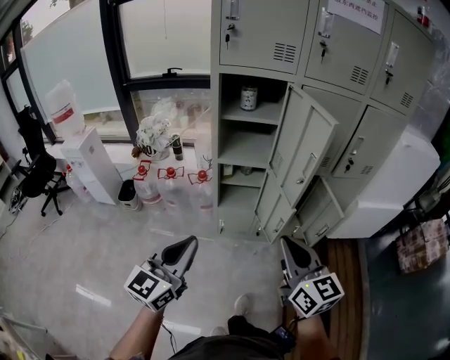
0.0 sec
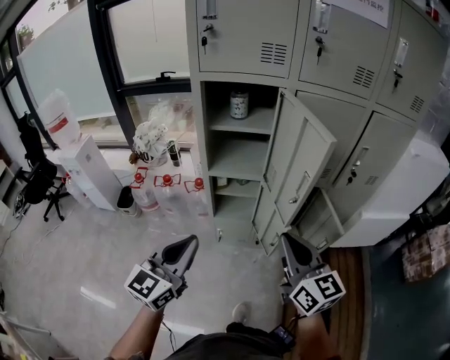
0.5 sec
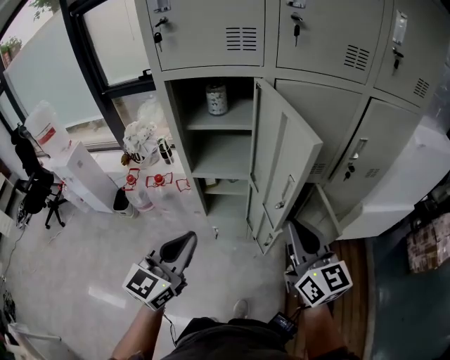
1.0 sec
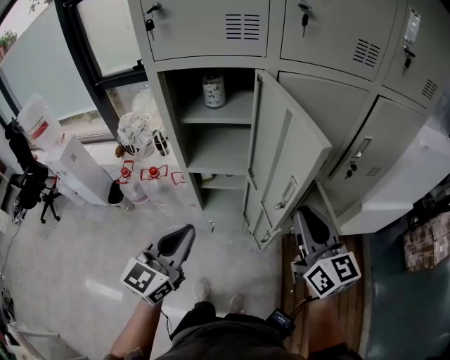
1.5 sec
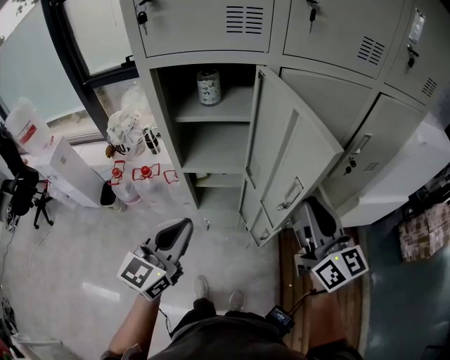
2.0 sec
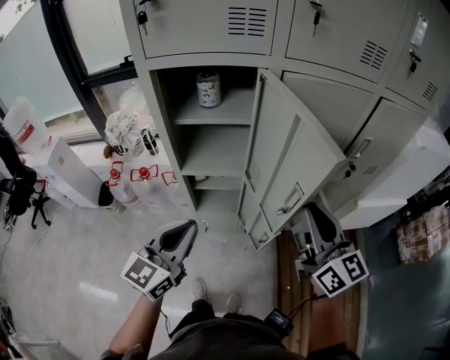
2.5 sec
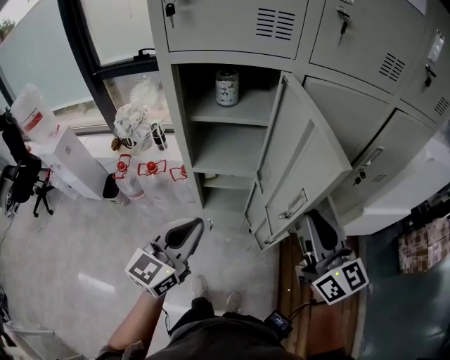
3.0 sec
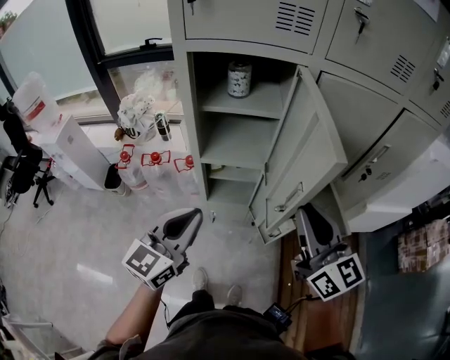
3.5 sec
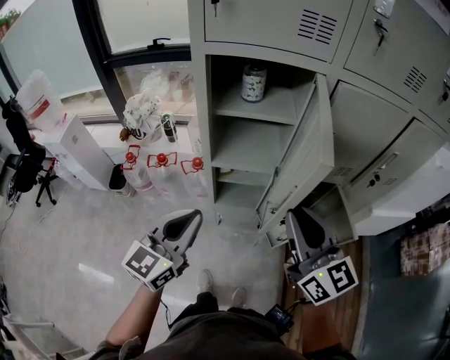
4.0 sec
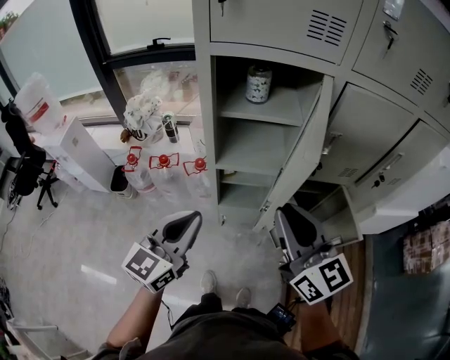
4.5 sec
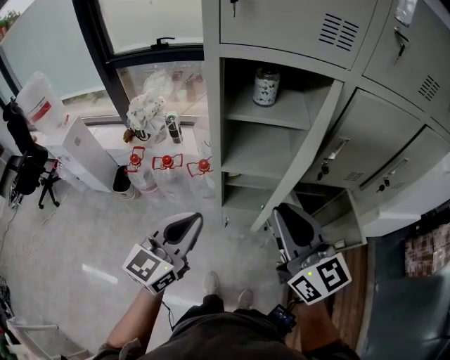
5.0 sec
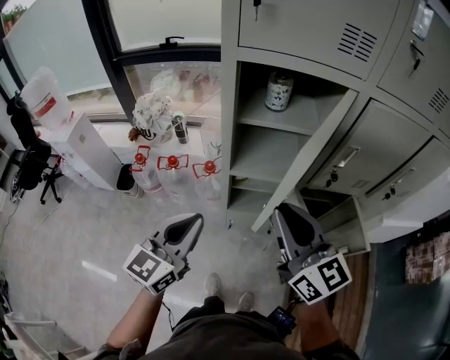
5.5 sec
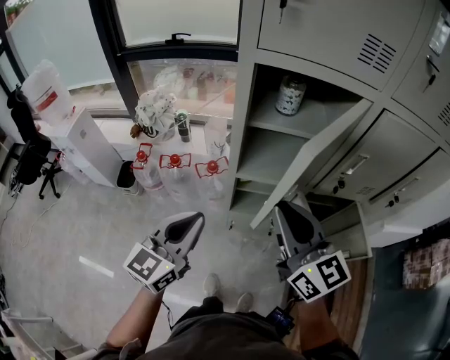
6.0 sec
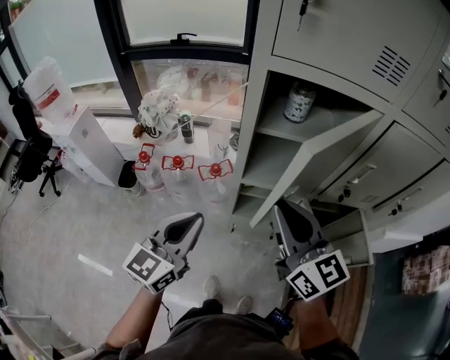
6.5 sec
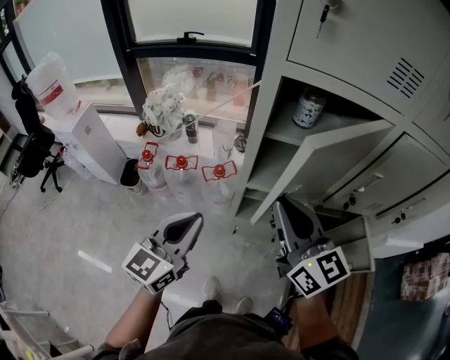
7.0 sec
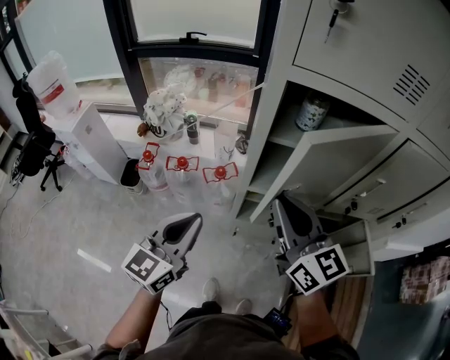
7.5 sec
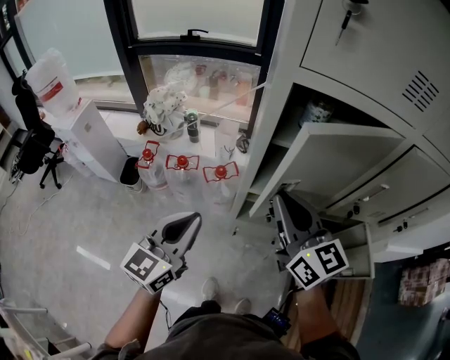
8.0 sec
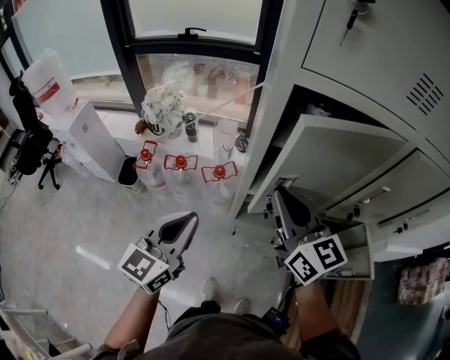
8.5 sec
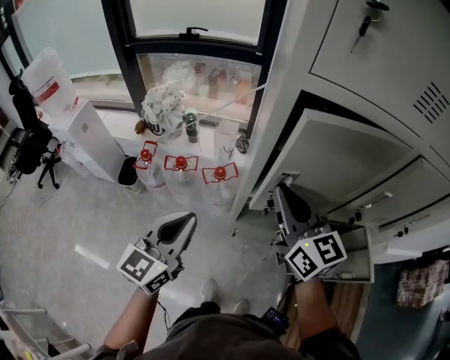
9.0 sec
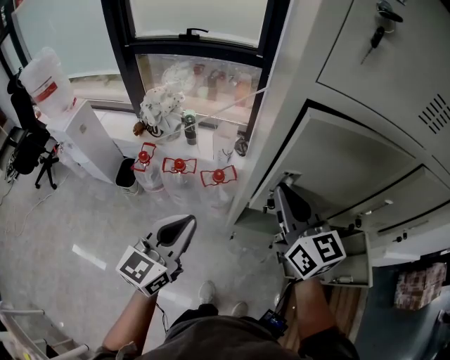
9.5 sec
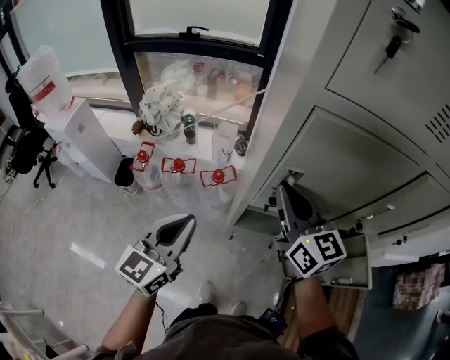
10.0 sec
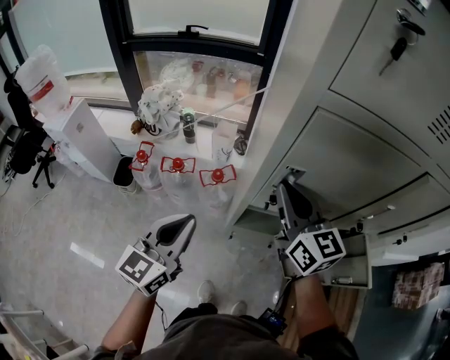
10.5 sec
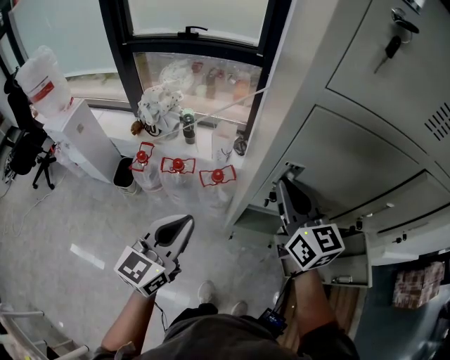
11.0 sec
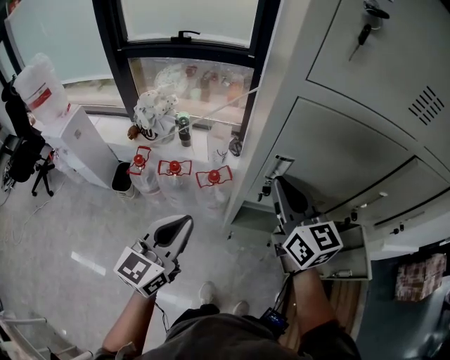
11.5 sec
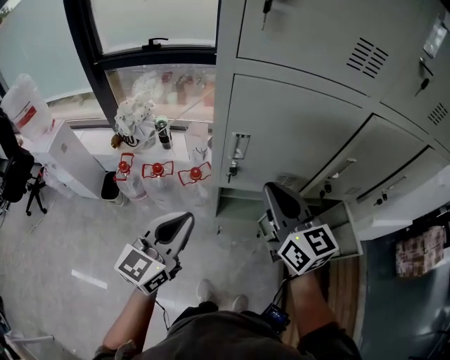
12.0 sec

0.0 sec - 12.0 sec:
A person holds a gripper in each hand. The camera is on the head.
0.0 sec - 2.0 sec: The right gripper shifts some 25 cm forward and to the right, while the left gripper travels forward by approximately 20 cm.
2.0 sec - 4.0 sec: The left gripper heads to the left, covering roughly 5 cm, while the right gripper is displaced to the left by roughly 15 cm.
4.0 sec - 6.0 sec: The left gripper goes roughly 10 cm to the left. Meanwhile the right gripper heads to the left and forward, covering about 15 cm.
6.0 sec - 8.0 sec: The right gripper moves forward, about 10 cm; the left gripper goes some 5 cm forward.
8.0 sec - 10.0 sec: The left gripper moves roughly 5 cm. The right gripper is displaced forward by some 10 cm.
10.0 sec - 12.0 sec: The left gripper moves to the right and backward, approximately 10 cm. The right gripper moves backward and to the right, about 10 cm.

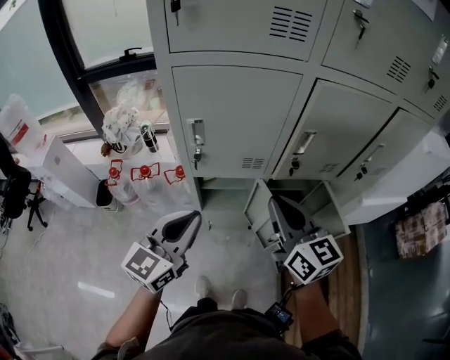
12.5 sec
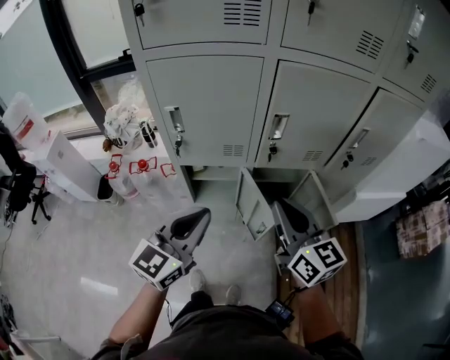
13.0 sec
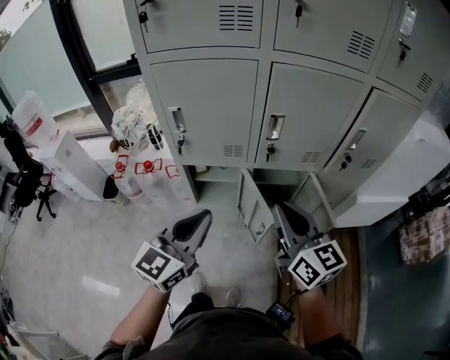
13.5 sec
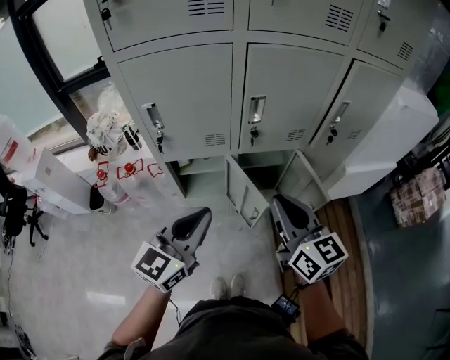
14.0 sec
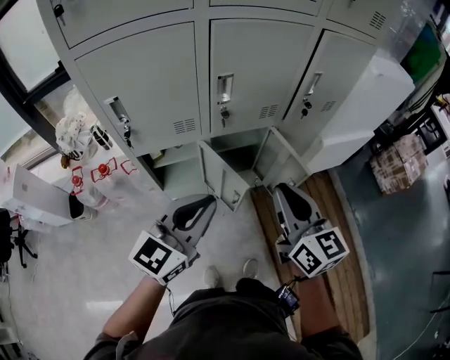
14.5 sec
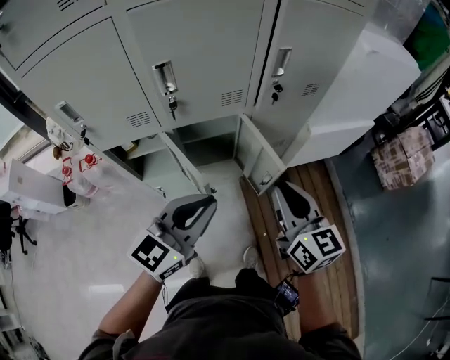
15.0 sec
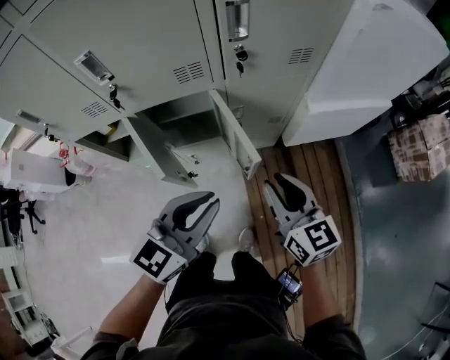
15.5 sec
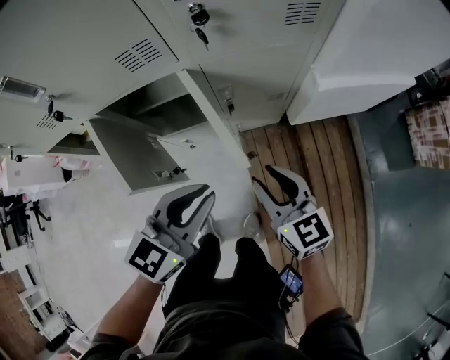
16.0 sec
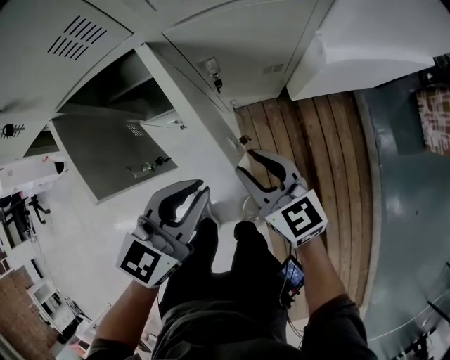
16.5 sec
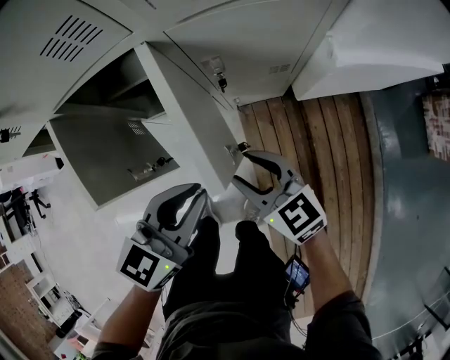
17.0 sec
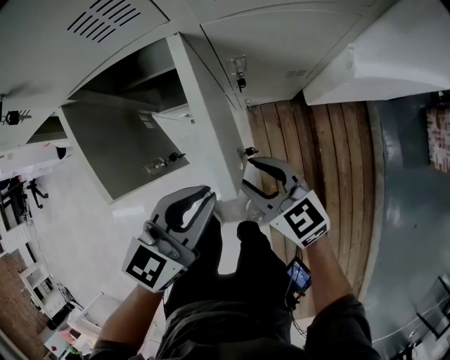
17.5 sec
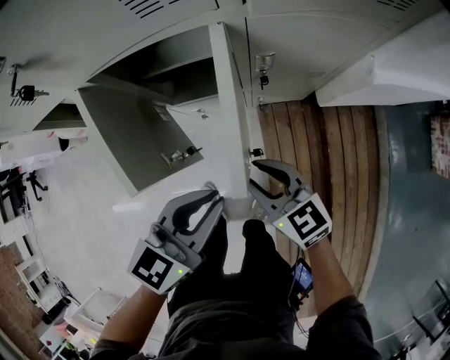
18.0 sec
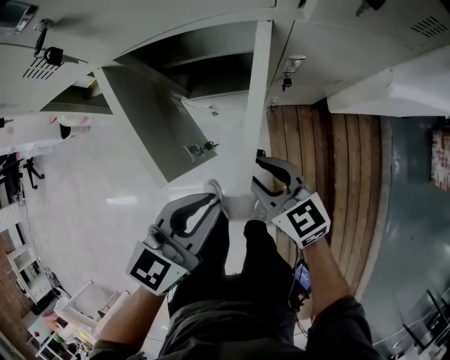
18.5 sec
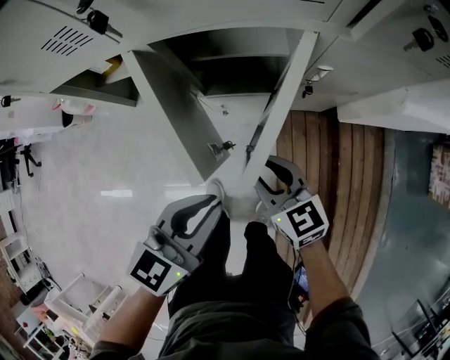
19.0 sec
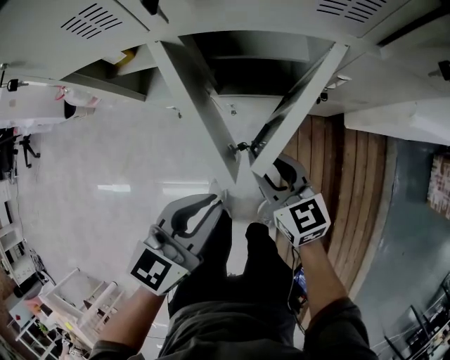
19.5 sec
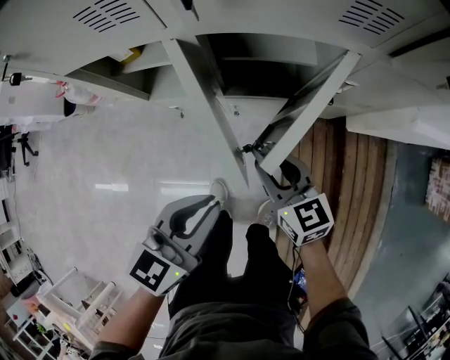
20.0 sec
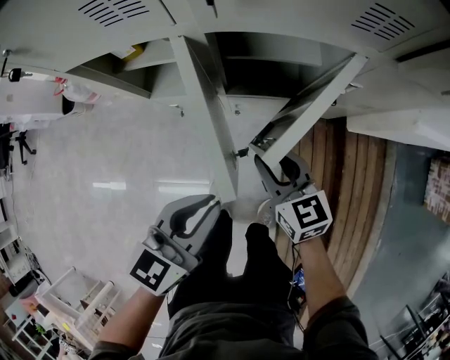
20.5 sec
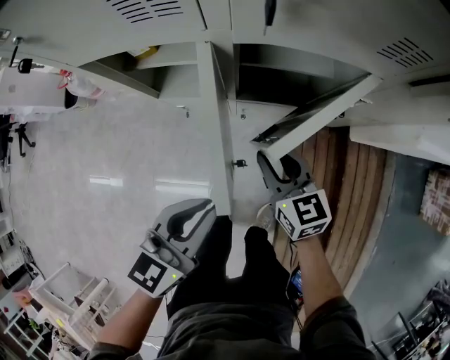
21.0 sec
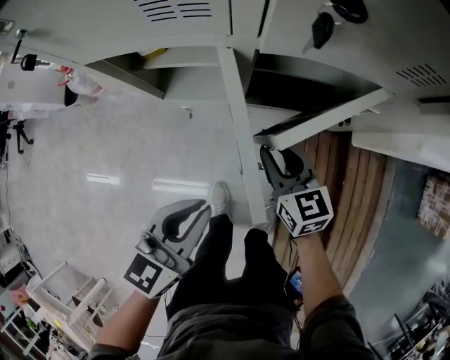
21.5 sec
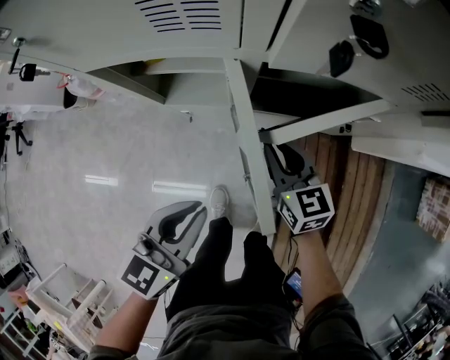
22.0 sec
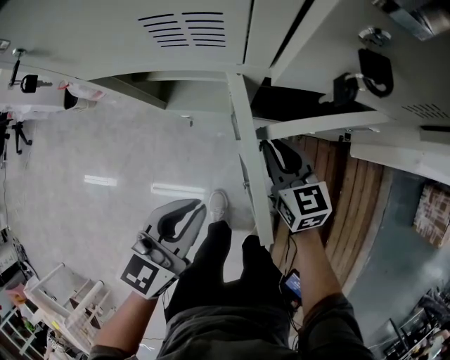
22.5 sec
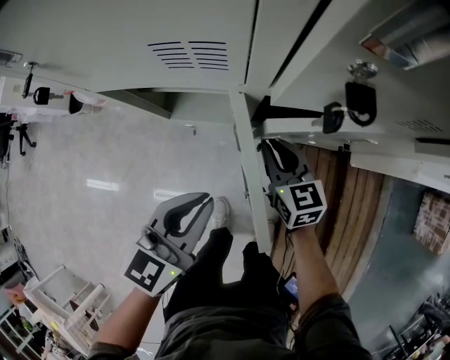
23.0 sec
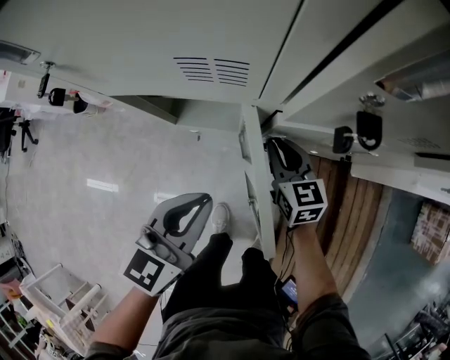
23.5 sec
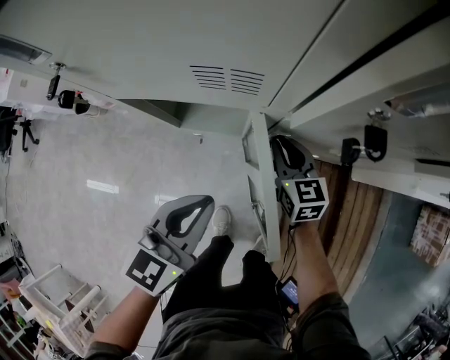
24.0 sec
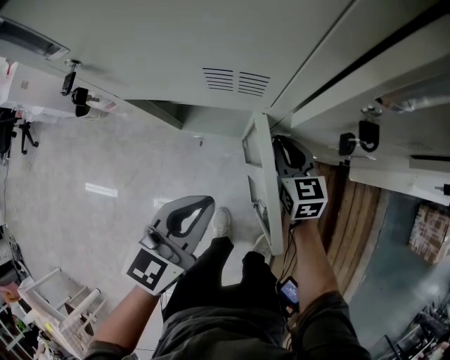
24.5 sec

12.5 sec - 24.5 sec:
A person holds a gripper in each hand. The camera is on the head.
12.5 sec - 14.5 sec: The left gripper goes approximately 20 cm to the right. Meanwhile the right gripper travels to the right and backward by approximately 20 cm.
14.5 sec - 16.5 sec: The left gripper is displaced to the right, downward and forward by approximately 40 cm, and swivels roughly 20 degrees. Meanwhile the right gripper is displaced downward, to the right and forward by roughly 40 cm, rotates about 30 degrees, and opens its fingers.
16.5 sec - 18.5 sec: The two grippers go about 15 cm to the left.
18.5 sec - 20.5 sec: The right gripper goes approximately 10 cm to the left and forward. The left gripper is displaced to the left by approximately 10 cm.
20.5 sec - 22.5 sec: The left gripper moves to the left and forward, about 10 cm, while the right gripper heads forward and to the left, covering roughly 10 cm.
22.5 sec - 24.5 sec: The right gripper shifts about 5 cm forward. The left gripper moves roughly 5 cm.

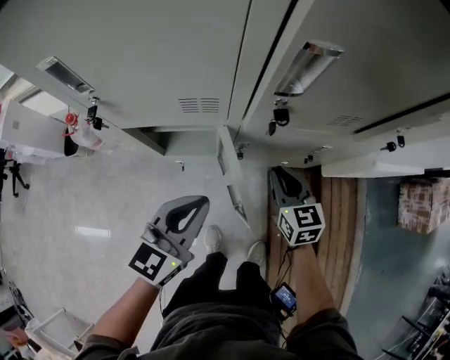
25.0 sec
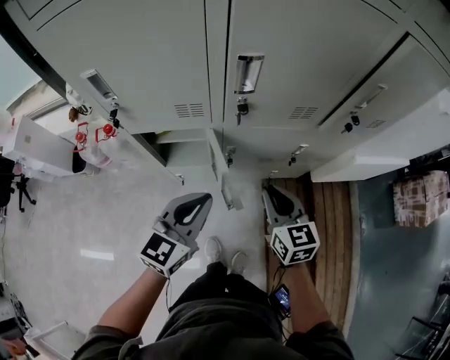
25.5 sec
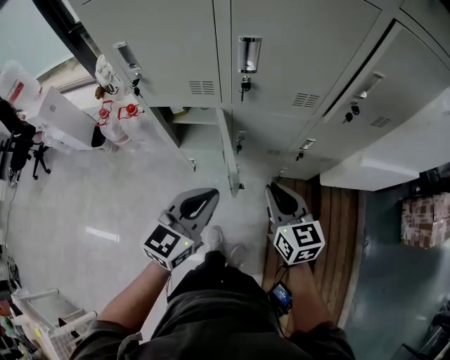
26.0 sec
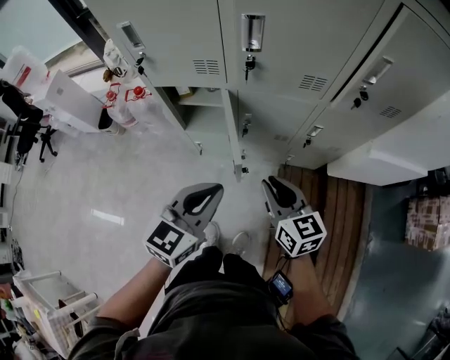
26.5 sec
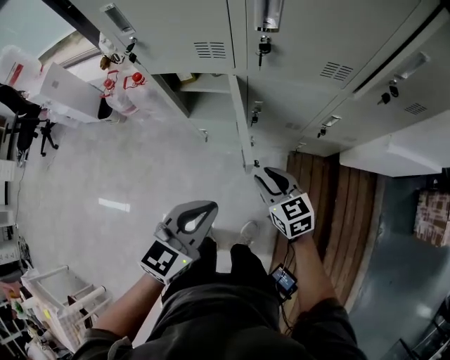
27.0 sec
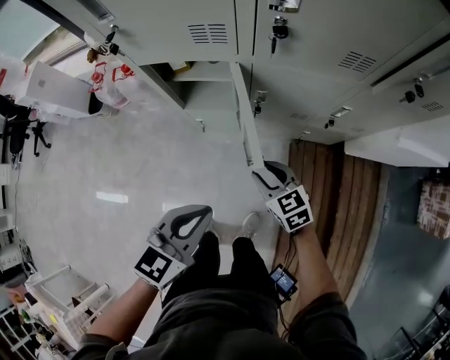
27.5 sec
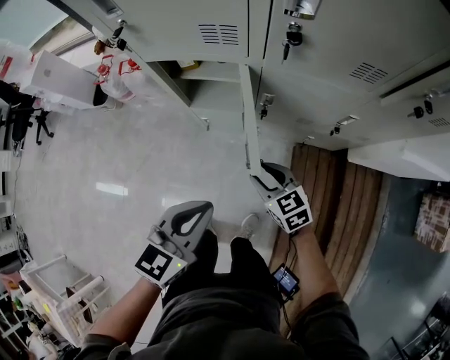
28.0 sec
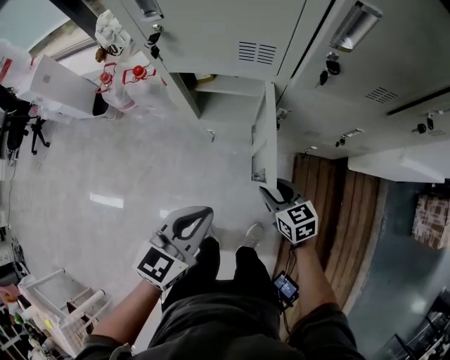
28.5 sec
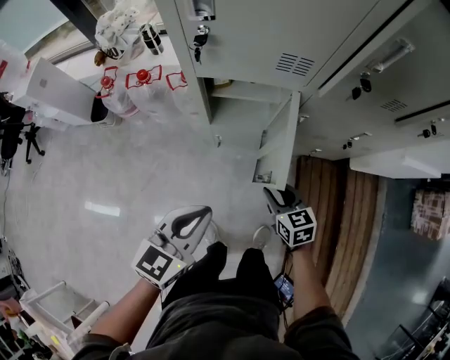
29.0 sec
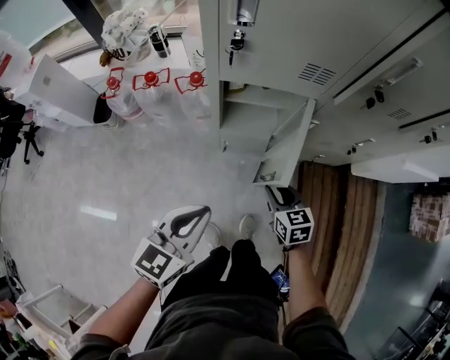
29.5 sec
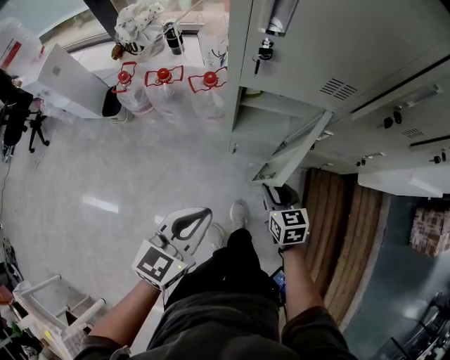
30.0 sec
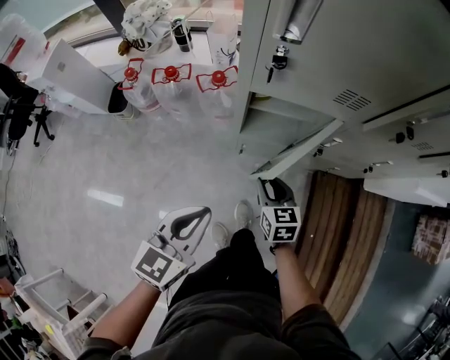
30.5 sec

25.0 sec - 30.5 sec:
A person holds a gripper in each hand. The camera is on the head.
25.0 sec - 27.0 sec: Both grippers travel together backward, roughly 15 cm. The right gripper turns by approximately 20 degrees.
27.0 sec - 28.5 sec: The left gripper goes approximately 10 cm to the left. Meanwhile the right gripper goes some 10 cm downward and to the left.
28.5 sec - 30.5 sec: The grippers both shift to the left by approximately 20 cm.
